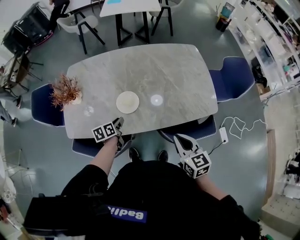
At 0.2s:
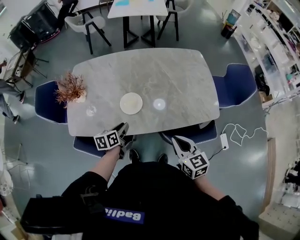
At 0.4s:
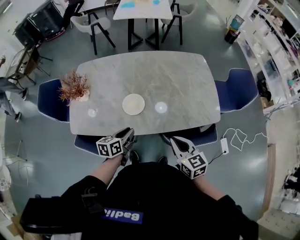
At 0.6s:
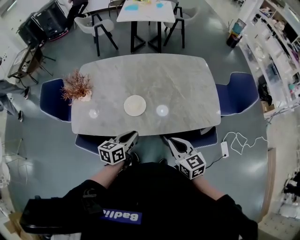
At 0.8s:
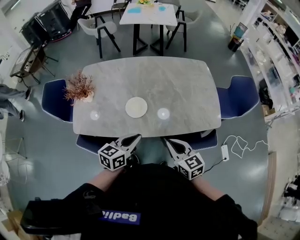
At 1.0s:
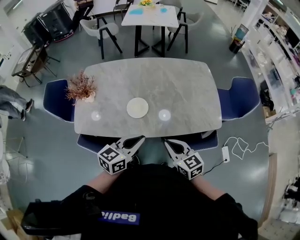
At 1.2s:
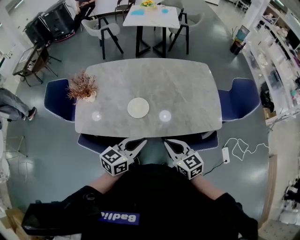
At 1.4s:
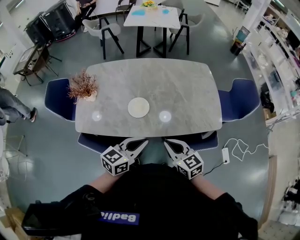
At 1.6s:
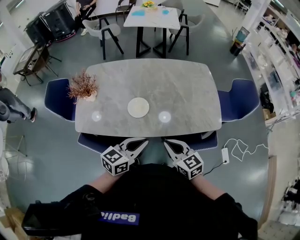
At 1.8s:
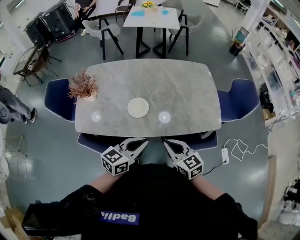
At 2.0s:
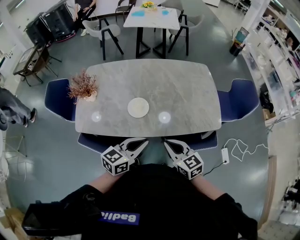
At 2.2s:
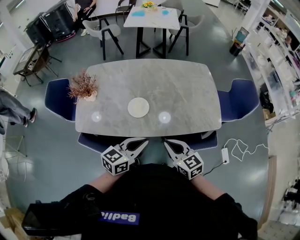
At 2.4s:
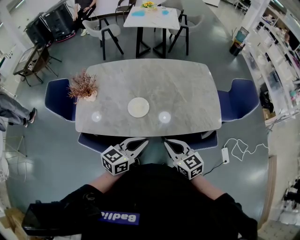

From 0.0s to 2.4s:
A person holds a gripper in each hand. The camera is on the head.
From 0.0s to 1.2s: The right gripper changes place by roughly 5 cm.

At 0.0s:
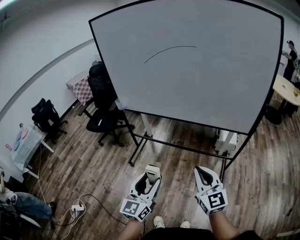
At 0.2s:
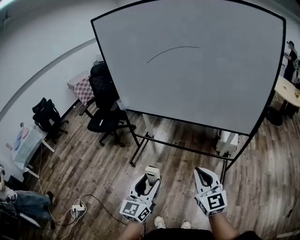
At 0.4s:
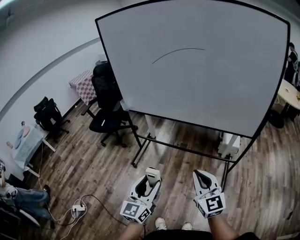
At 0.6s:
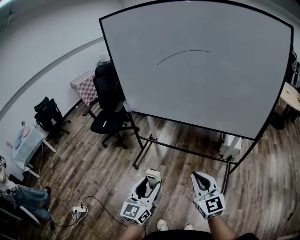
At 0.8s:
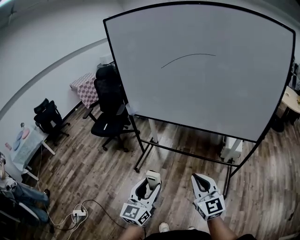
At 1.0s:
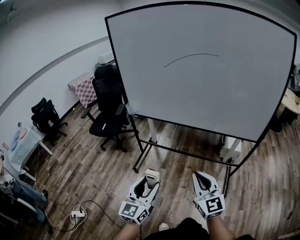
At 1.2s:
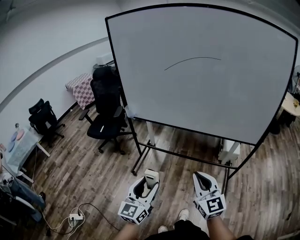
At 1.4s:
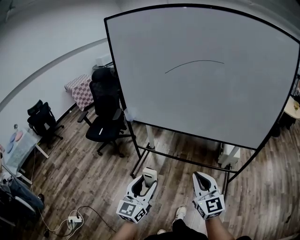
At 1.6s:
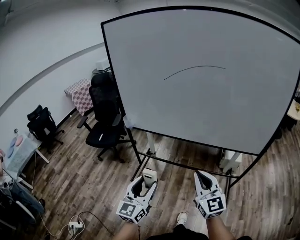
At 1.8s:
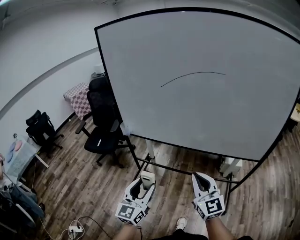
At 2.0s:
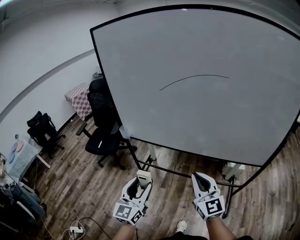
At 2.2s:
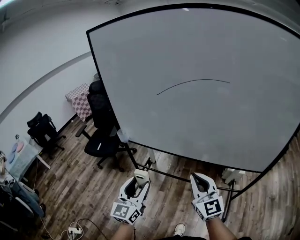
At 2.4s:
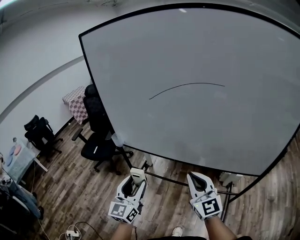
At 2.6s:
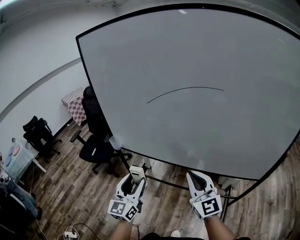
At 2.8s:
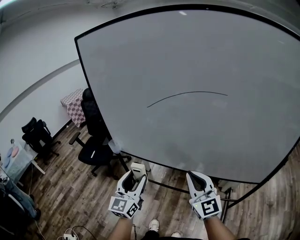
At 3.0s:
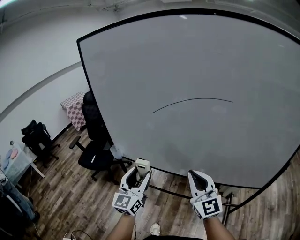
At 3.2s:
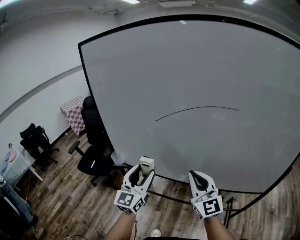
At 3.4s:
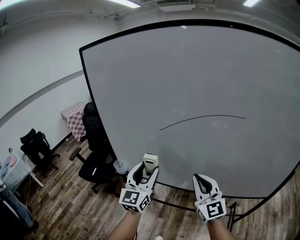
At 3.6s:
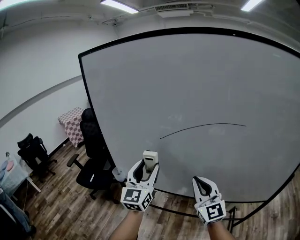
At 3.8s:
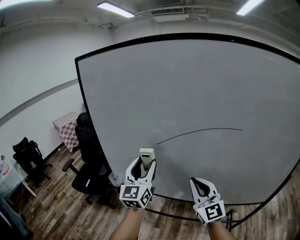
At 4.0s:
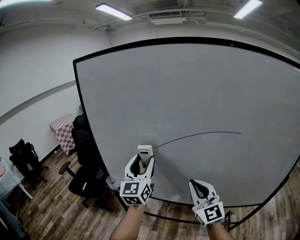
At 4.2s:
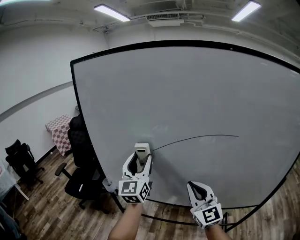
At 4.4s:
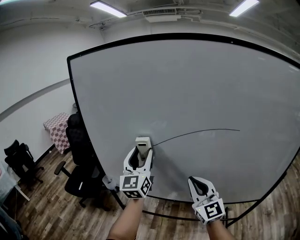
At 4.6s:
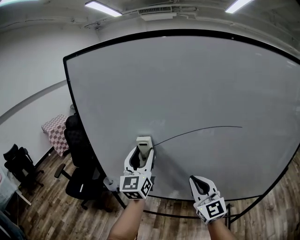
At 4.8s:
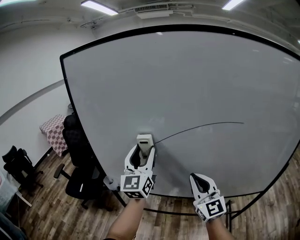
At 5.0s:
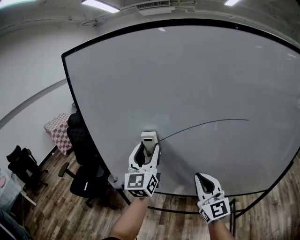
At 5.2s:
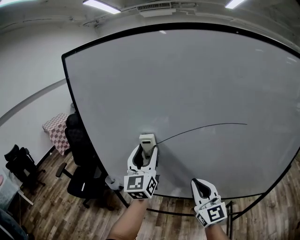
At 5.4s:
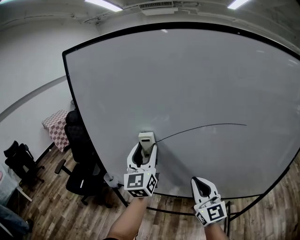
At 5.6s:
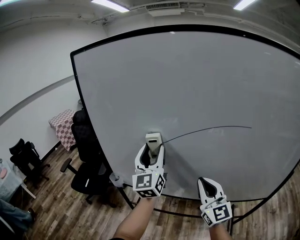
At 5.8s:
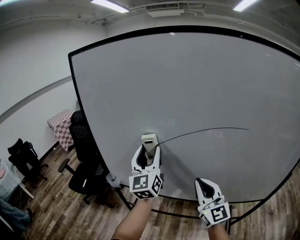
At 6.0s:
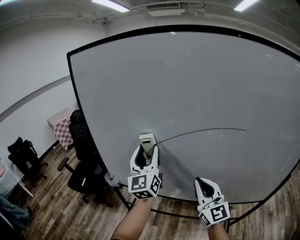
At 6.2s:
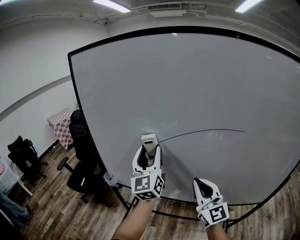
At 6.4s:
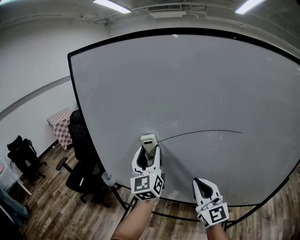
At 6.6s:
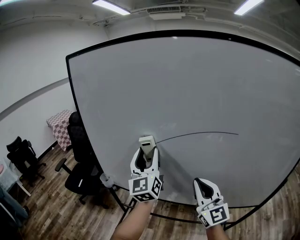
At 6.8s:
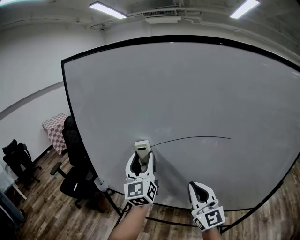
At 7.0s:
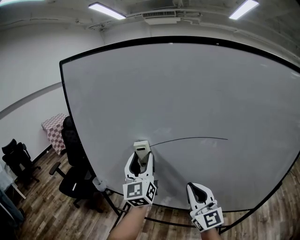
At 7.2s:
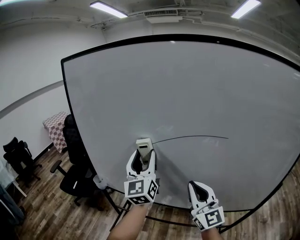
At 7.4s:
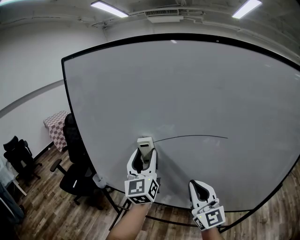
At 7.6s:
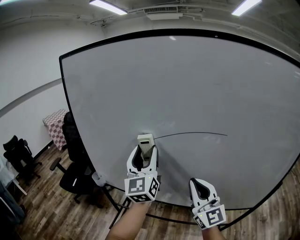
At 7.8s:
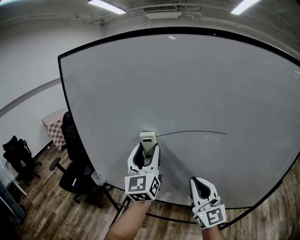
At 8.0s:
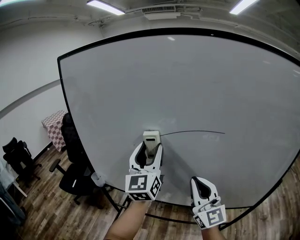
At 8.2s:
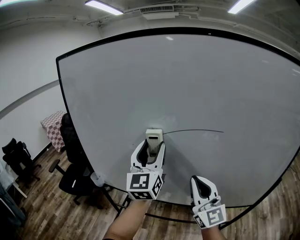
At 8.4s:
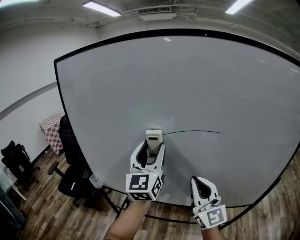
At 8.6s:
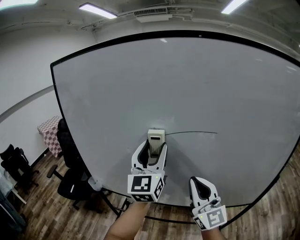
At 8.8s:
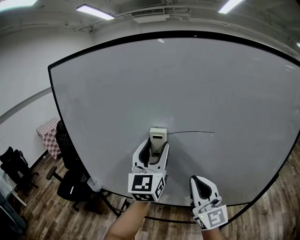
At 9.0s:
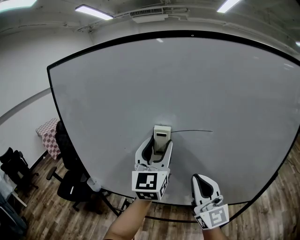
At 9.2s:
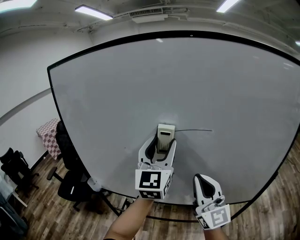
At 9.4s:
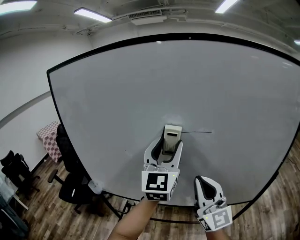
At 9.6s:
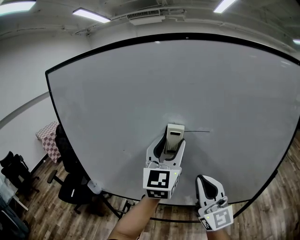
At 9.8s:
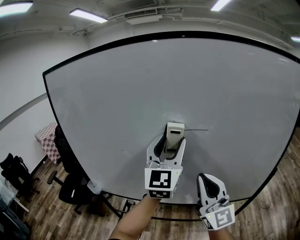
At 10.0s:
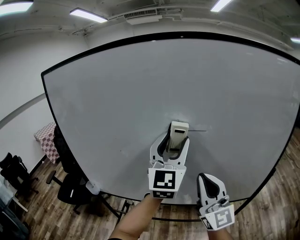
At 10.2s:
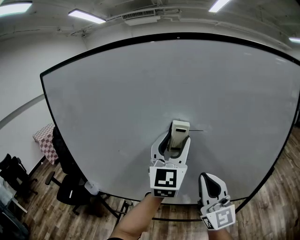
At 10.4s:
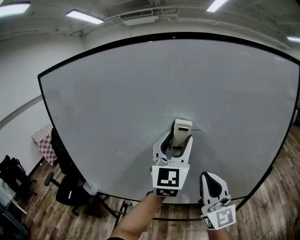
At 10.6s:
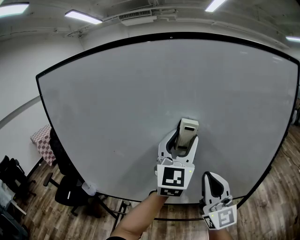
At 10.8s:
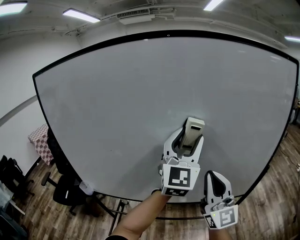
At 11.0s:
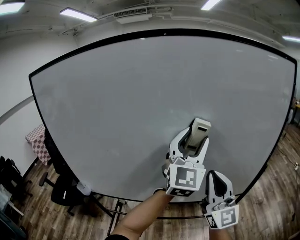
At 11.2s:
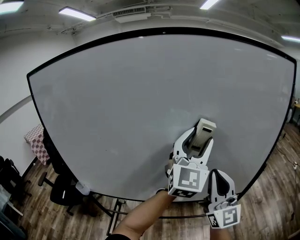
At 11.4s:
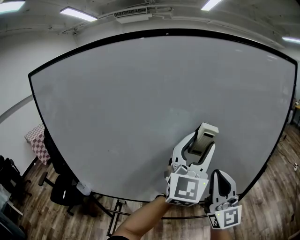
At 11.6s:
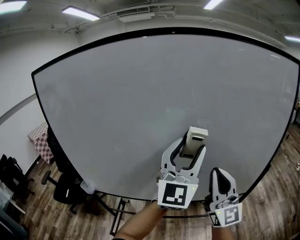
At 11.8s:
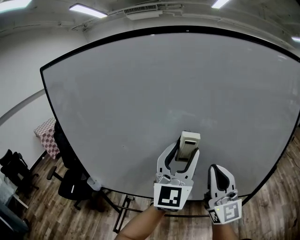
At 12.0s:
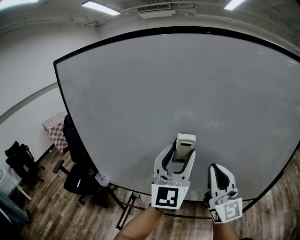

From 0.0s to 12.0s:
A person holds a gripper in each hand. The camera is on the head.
From 0.0s to 1.6s: The grippers both shift forward and to the left by approximately 20 cm.
From 1.6s to 3.0s: The two grippers go approximately 25 cm forward.
From 3.0s to 4.4s: The left gripper shifts approximately 25 cm forward and upward; the right gripper heads forward, covering approximately 10 cm.
From 4.4s to 6.0s: The grippers move only a little.
From 6.0s to 7.6s: The two grippers go about 5 cm to the right.
From 7.6s to 9.0s: The right gripper ends up about 5 cm from where it was. Meanwhile the left gripper is displaced to the right and upward by approximately 10 cm.
From 9.0s to 10.4s: The left gripper shifts approximately 10 cm to the right. The right gripper shifts roughly 5 cm to the right.
From 10.4s to 12.0s: The left gripper is displaced to the left and backward by some 10 cm.

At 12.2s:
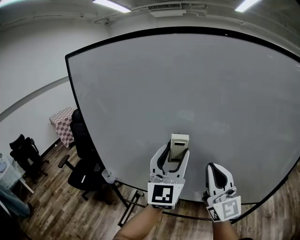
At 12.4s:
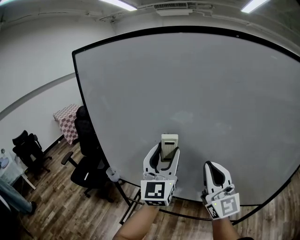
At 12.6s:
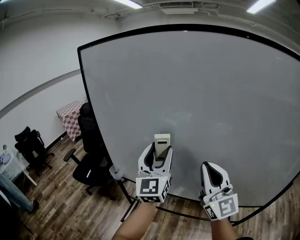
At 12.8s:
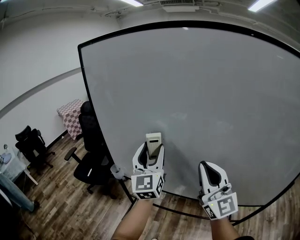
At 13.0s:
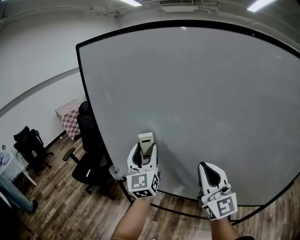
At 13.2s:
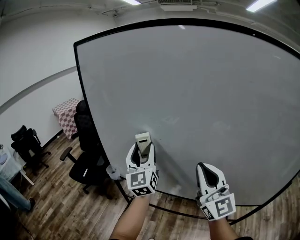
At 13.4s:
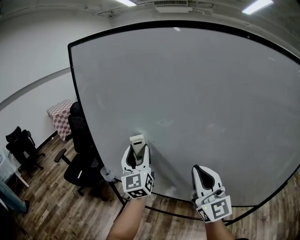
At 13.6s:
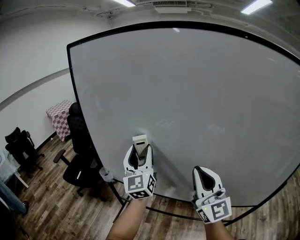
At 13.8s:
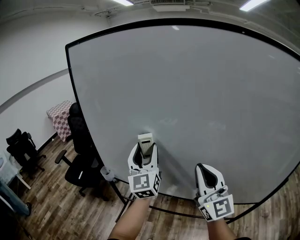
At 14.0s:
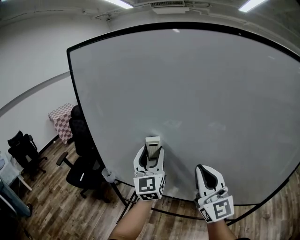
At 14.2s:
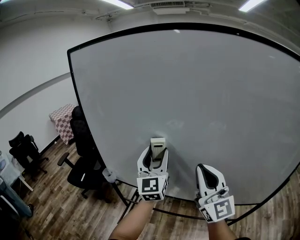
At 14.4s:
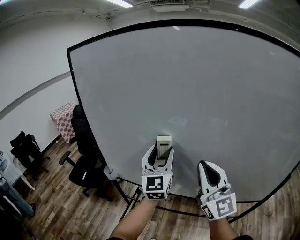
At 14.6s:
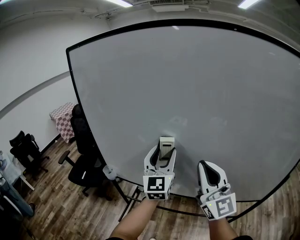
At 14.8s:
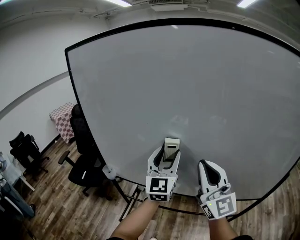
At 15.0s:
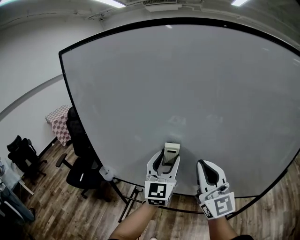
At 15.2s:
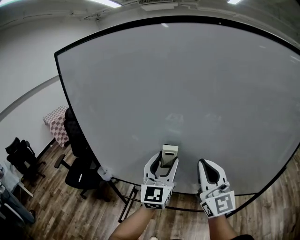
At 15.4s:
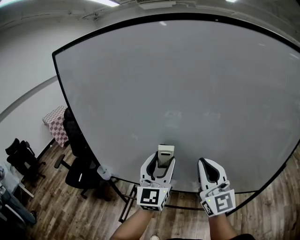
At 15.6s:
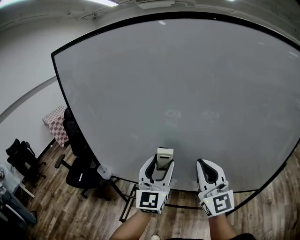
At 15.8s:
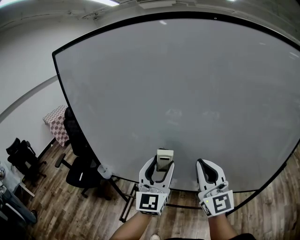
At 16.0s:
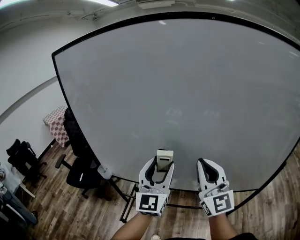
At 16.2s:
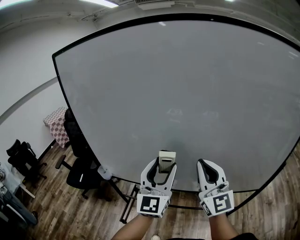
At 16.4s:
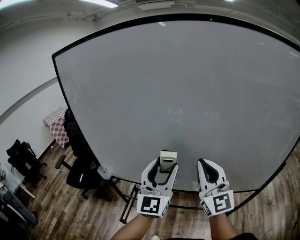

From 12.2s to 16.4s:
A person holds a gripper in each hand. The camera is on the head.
From 12.2s to 13.6s: The right gripper travels to the left and forward by roughly 10 cm. The left gripper goes some 25 cm to the left, forward and downward, and rotates roughly 30 degrees.
From 13.6s to 15.0s: The left gripper shifts some 15 cm to the right and backward, and turns by some 30 degrees.
From 15.0s to 16.4s: The left gripper heads backward, covering about 5 cm.

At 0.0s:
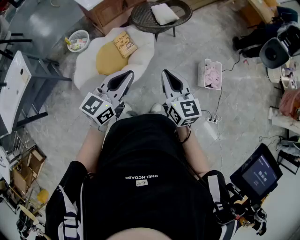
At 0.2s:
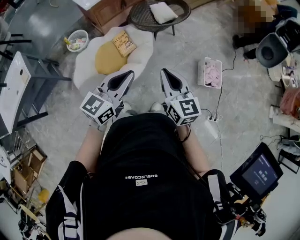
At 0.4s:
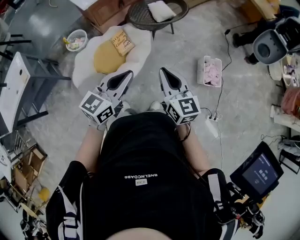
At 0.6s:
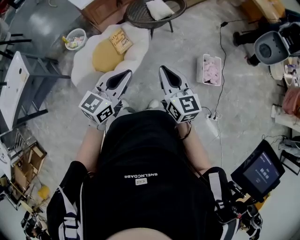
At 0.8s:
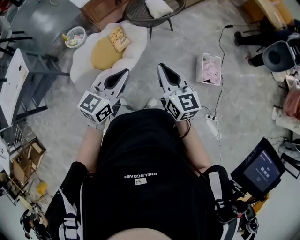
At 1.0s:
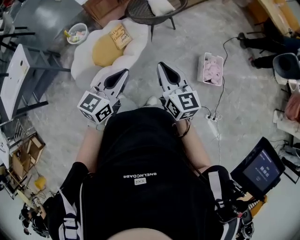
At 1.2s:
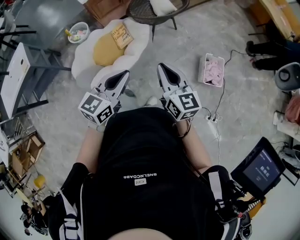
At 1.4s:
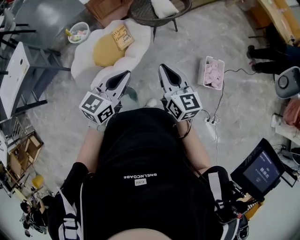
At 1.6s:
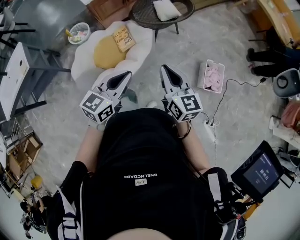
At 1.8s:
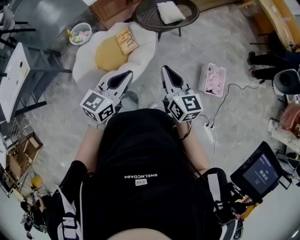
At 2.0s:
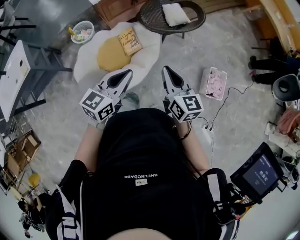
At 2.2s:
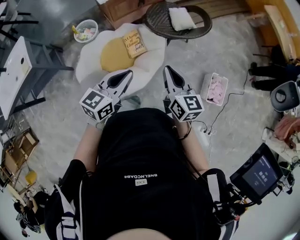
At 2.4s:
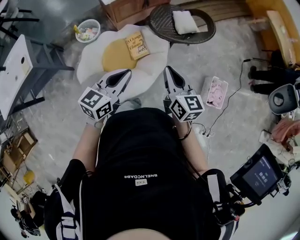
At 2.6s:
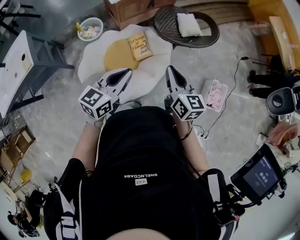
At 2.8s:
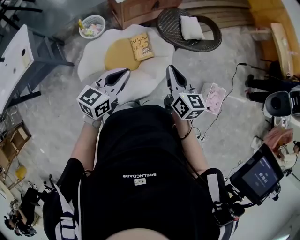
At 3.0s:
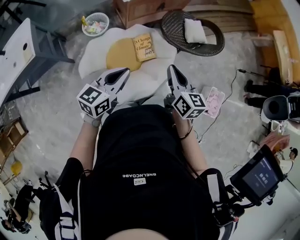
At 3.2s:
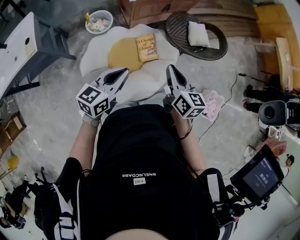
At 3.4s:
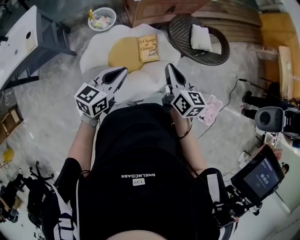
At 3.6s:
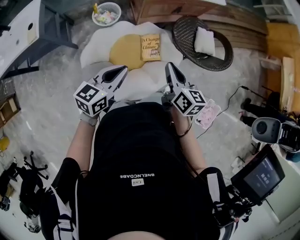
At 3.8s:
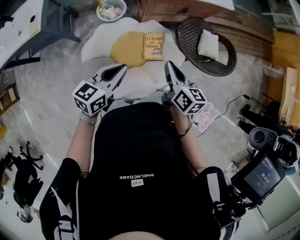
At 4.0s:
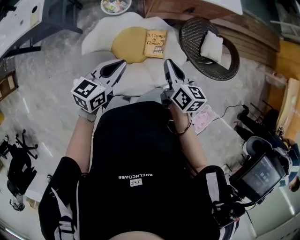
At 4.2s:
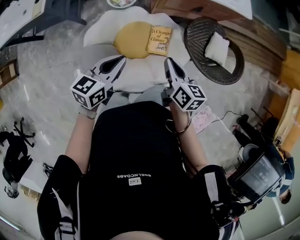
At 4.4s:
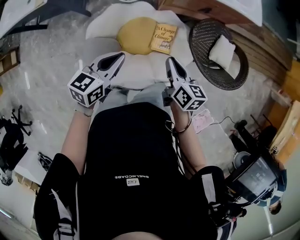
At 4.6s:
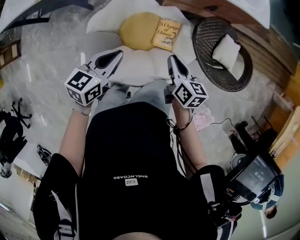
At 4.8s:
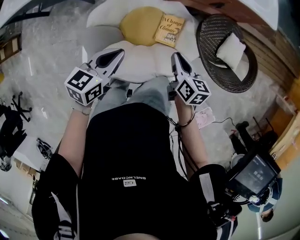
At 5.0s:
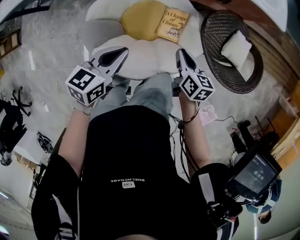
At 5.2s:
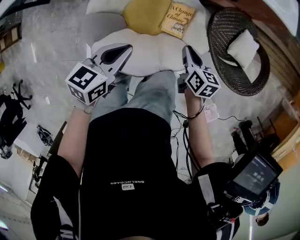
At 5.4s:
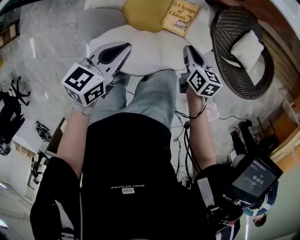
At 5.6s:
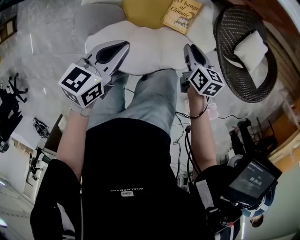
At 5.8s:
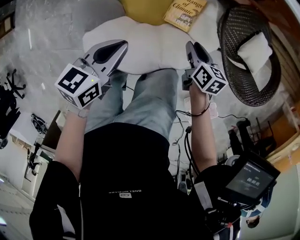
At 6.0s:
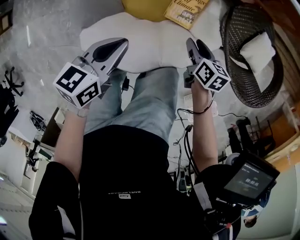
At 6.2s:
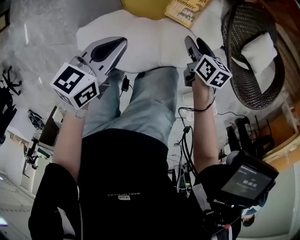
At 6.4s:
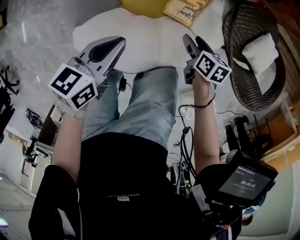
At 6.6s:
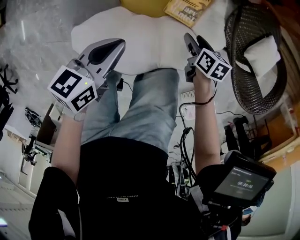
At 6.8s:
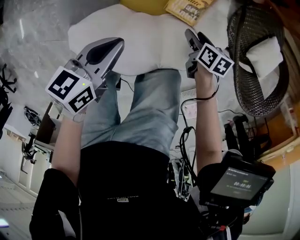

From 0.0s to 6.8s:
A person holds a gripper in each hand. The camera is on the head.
From 0.0s to 1.4s: Both grippers move to the right, some 10 cm.
From 1.4s to 2.8s: Both grippers move to the left and forward, about 30 cm.
From 2.8s to 4.0s: Both grippers travel together forward and downward, approximately 15 cm. The left gripper swivels roughly 20 degrees, while the right gripper swivels about 30 degrees.
From 4.0s to 5.4s: The left gripper heads downward, covering some 15 cm; the right gripper travels downward by approximately 25 cm, and turns by roughly 20 degrees.
From 5.4s to 6.8s: Both grippers travel together downward, some 20 cm. The right gripper opens up.
